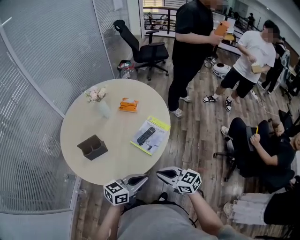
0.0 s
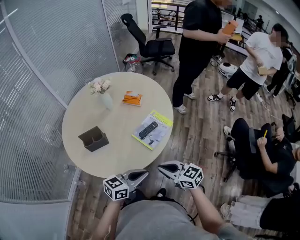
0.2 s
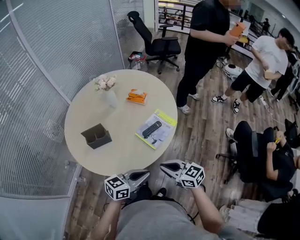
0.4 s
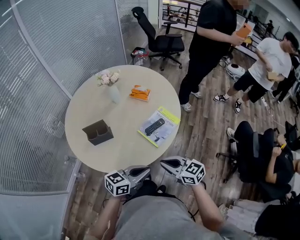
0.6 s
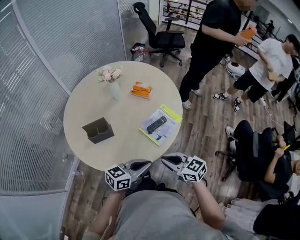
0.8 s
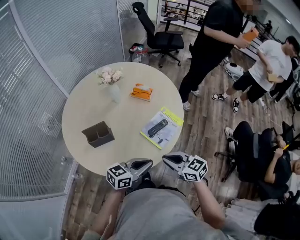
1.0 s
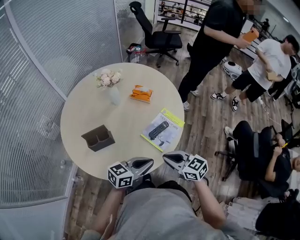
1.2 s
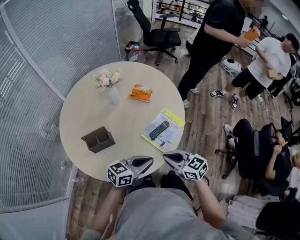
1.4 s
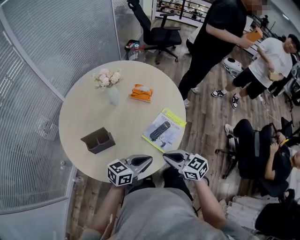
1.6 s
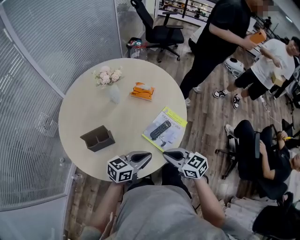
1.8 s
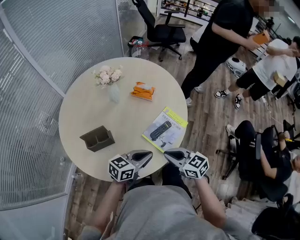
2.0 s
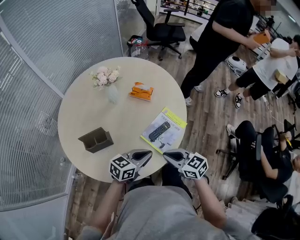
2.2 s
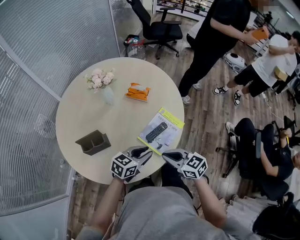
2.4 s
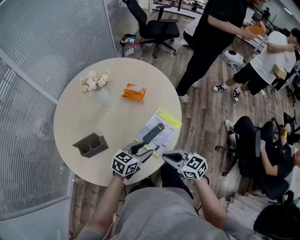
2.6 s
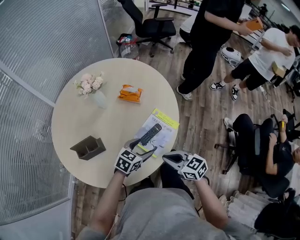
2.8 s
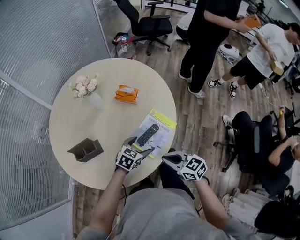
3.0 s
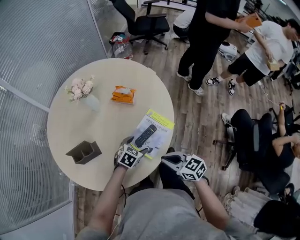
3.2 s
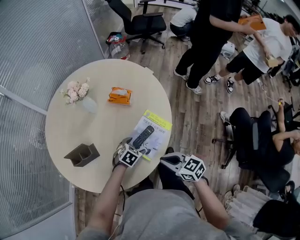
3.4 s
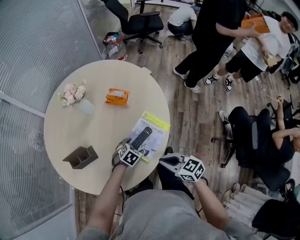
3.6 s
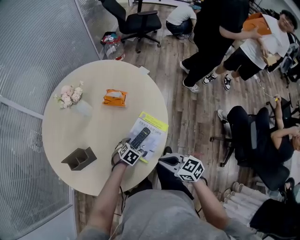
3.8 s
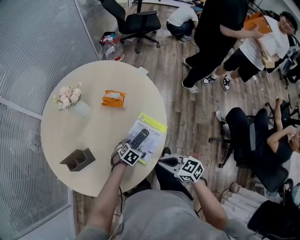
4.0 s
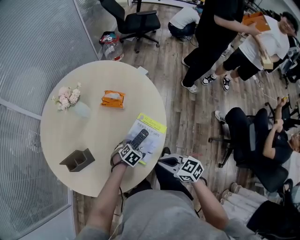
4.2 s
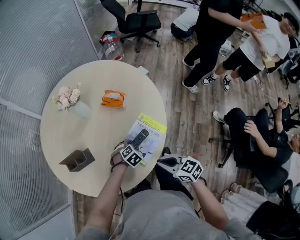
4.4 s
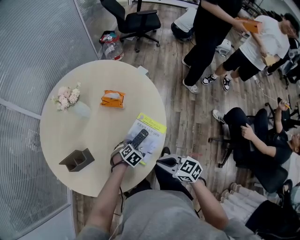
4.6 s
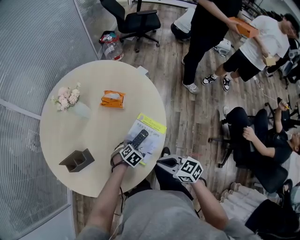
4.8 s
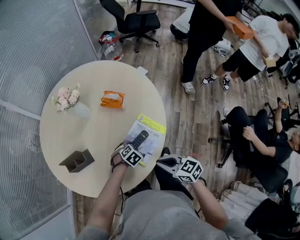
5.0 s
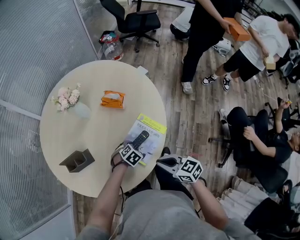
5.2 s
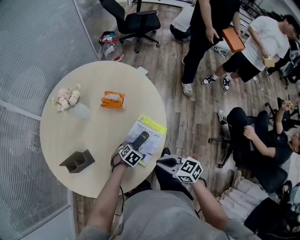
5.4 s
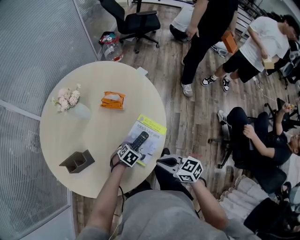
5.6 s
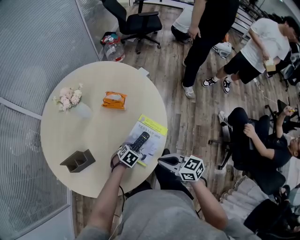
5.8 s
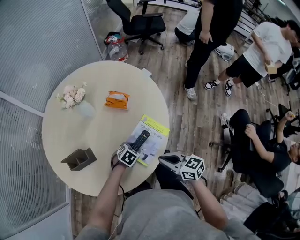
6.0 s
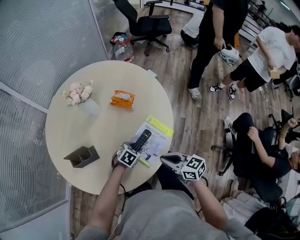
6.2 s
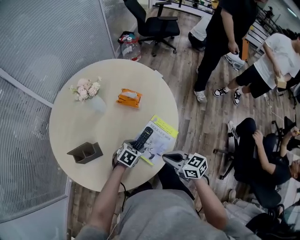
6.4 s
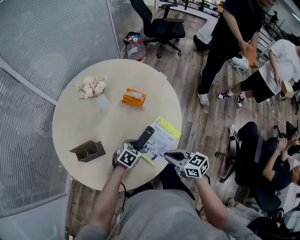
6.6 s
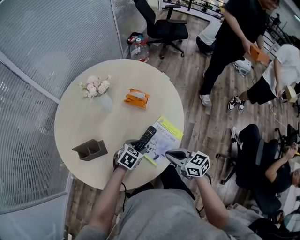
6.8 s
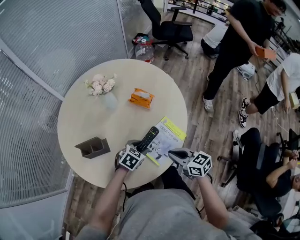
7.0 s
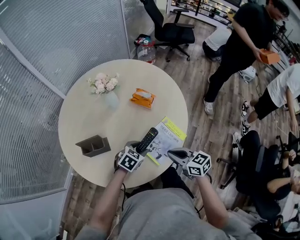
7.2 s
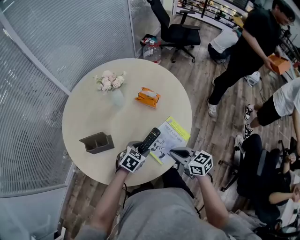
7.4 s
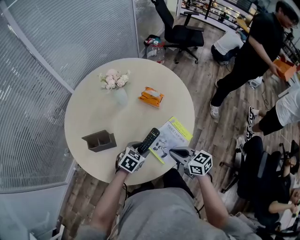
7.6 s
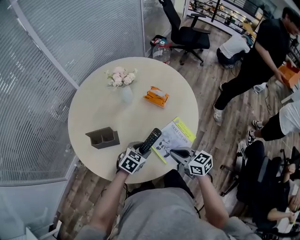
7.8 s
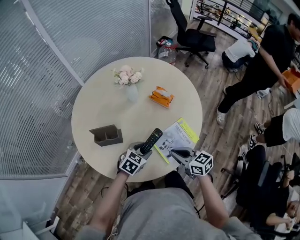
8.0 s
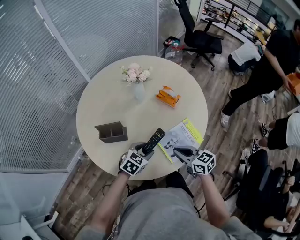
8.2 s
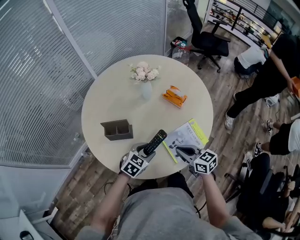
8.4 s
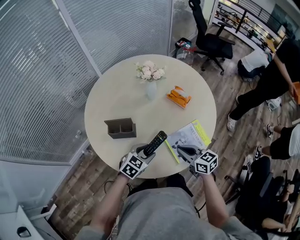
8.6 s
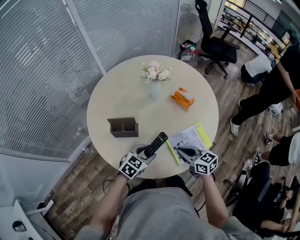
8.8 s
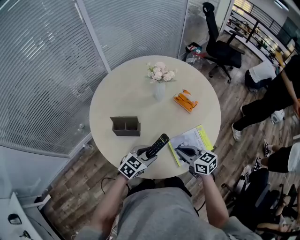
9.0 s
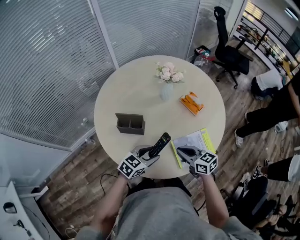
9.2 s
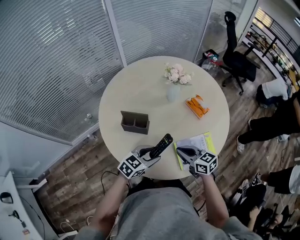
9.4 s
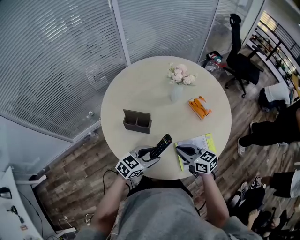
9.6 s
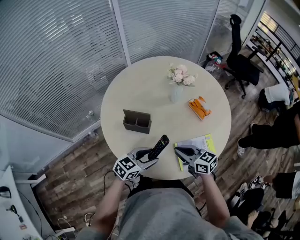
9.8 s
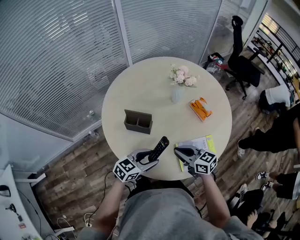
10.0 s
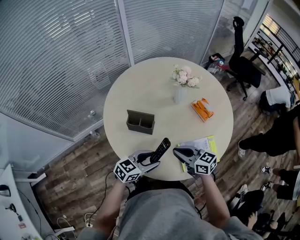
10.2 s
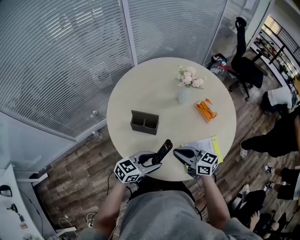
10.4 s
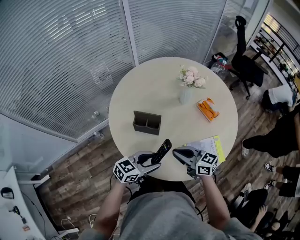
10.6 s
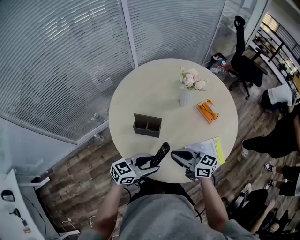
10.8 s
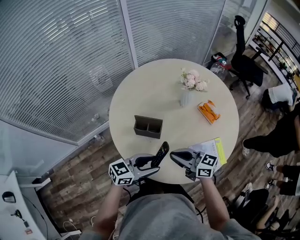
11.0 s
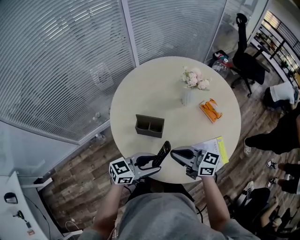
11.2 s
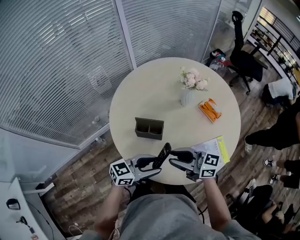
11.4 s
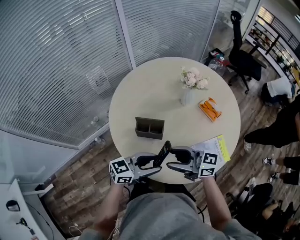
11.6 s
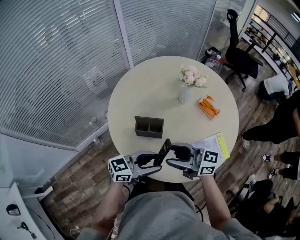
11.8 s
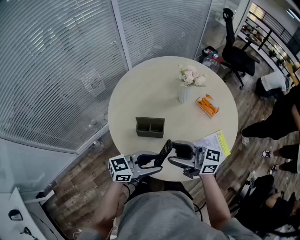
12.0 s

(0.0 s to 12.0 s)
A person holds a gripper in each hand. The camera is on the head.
0.0 s - 1.6 s: The left gripper goes approximately 15 cm forward and to the left; the right gripper goes about 10 cm forward.
1.6 s - 3.0 s: The left gripper shifts about 20 cm forward, downward and to the right, angles its fingers downward, by approximately 30 degrees, and opens, while the right gripper is displaced to the right by approximately 5 cm.
3.0 s - 4.4 s: The left gripper is displaced downward by approximately 10 cm, and rotates roughly 30 degrees.
4.4 s - 6.0 s: There are only small adjustments of the grippers.
6.0 s - 7.6 s: The left gripper goes approximately 15 cm upward and to the left, and turns by some 20 degrees, while the right gripper heads to the left, covering some 5 cm.
7.6 s - 9.0 s: Both grippers travel together to the left, about 10 cm.
9.0 s - 10.4 s: The right gripper ends up some 10 cm from where it was, and changes its angle by some 20 degrees. Meanwhile the left gripper changes place by roughly 10 cm, and turns by some 20 degrees.
10.4 s - 12.0 s: The two grippers go about 10 cm upward. The right gripper turns by about 20 degrees, and opens up. Meanwhile the left gripper swivels some 20 degrees.

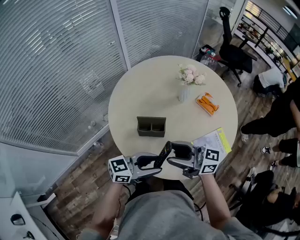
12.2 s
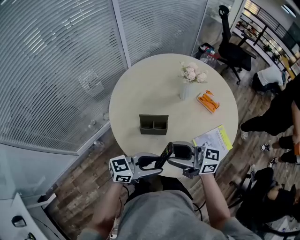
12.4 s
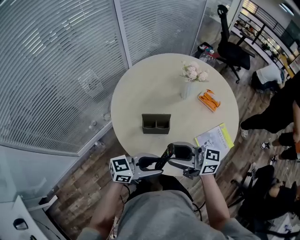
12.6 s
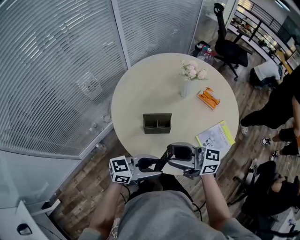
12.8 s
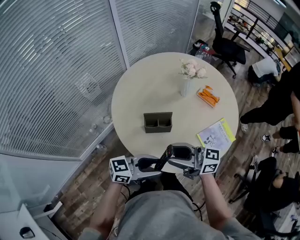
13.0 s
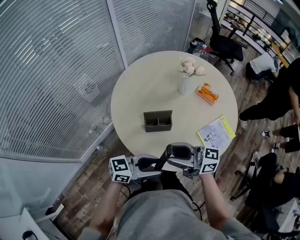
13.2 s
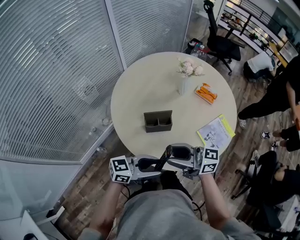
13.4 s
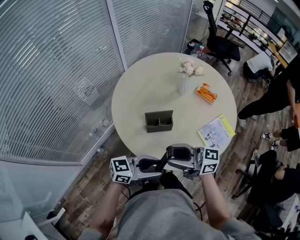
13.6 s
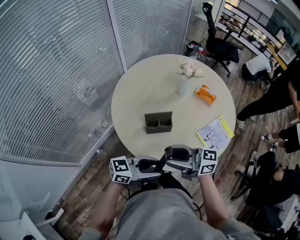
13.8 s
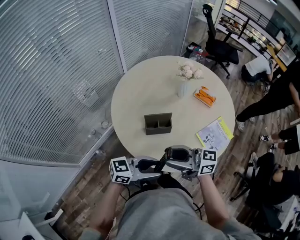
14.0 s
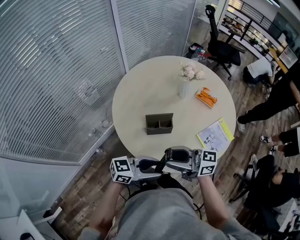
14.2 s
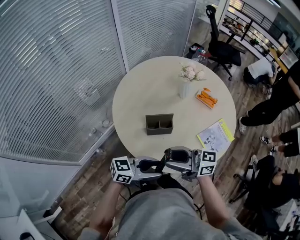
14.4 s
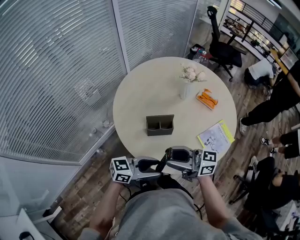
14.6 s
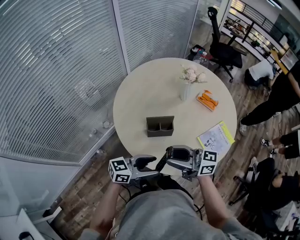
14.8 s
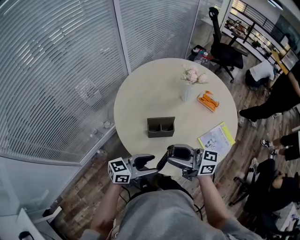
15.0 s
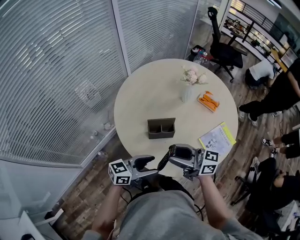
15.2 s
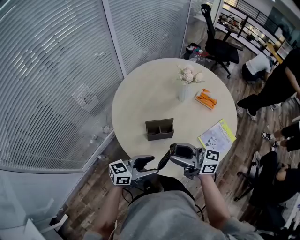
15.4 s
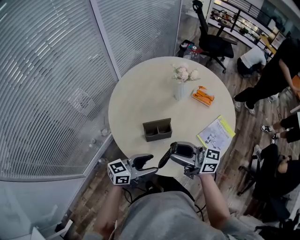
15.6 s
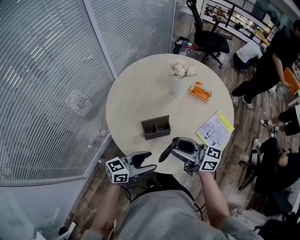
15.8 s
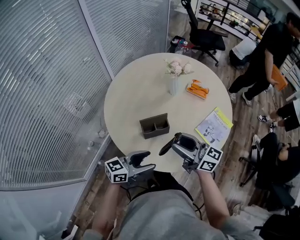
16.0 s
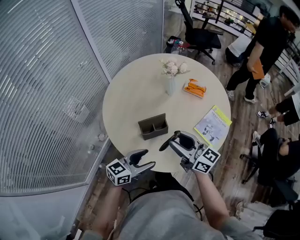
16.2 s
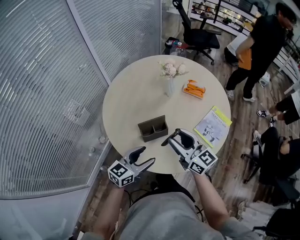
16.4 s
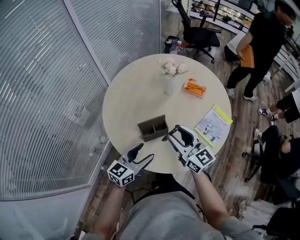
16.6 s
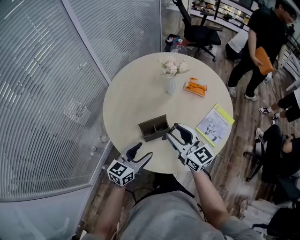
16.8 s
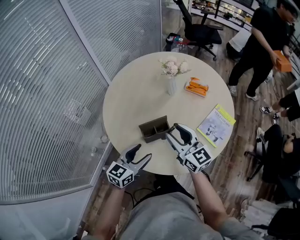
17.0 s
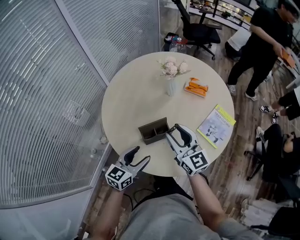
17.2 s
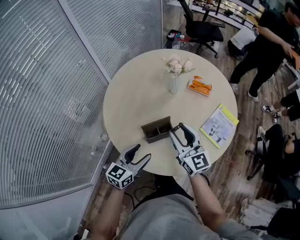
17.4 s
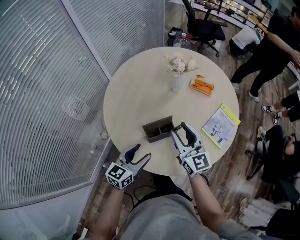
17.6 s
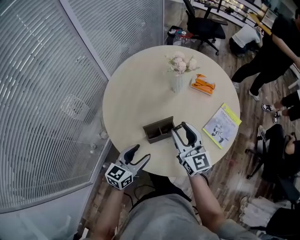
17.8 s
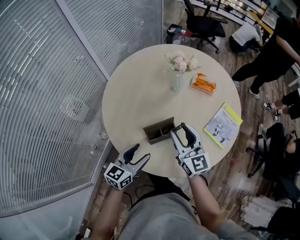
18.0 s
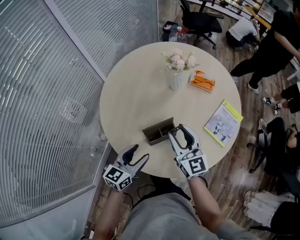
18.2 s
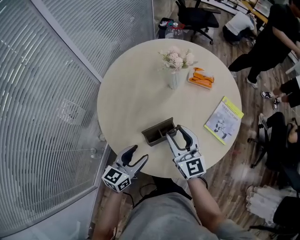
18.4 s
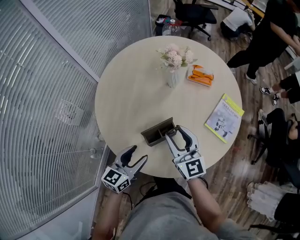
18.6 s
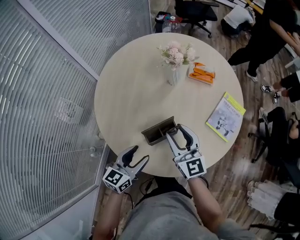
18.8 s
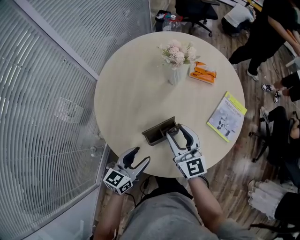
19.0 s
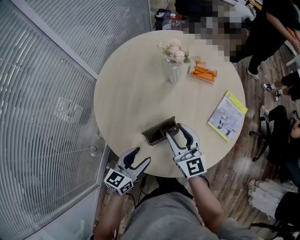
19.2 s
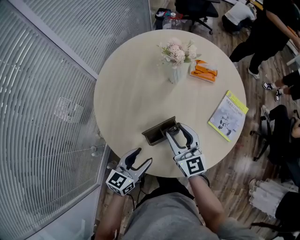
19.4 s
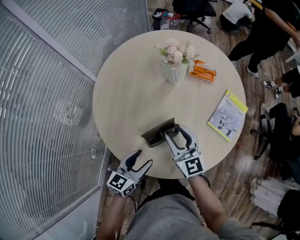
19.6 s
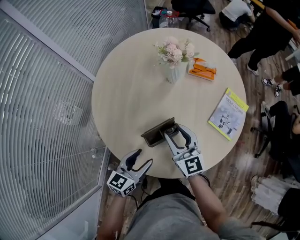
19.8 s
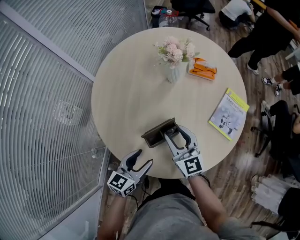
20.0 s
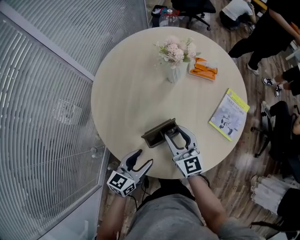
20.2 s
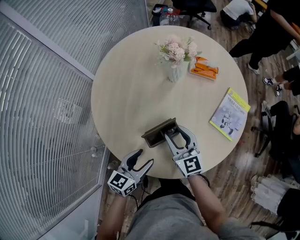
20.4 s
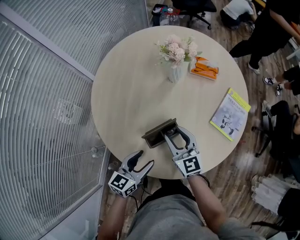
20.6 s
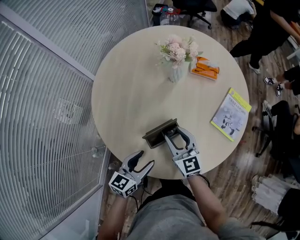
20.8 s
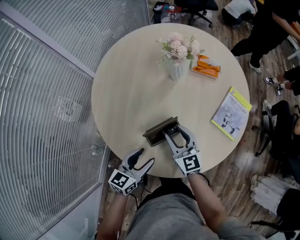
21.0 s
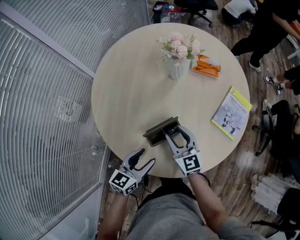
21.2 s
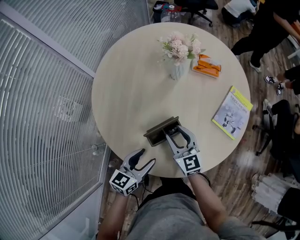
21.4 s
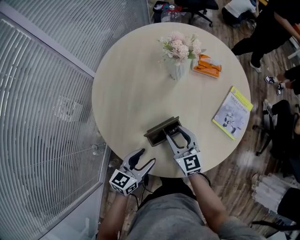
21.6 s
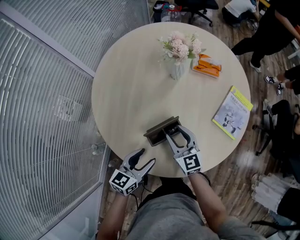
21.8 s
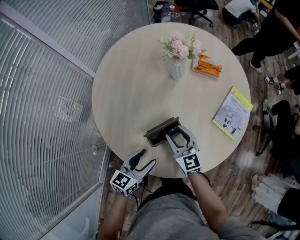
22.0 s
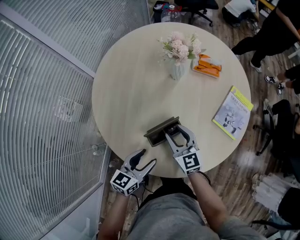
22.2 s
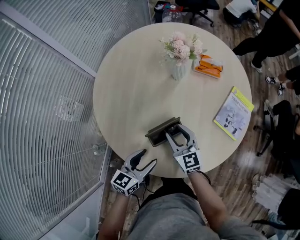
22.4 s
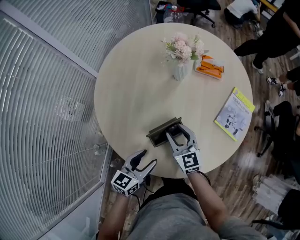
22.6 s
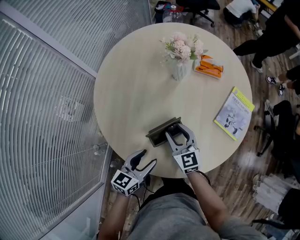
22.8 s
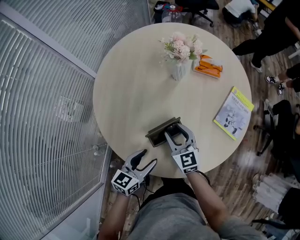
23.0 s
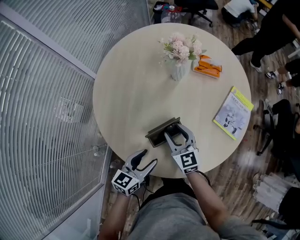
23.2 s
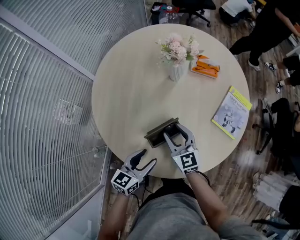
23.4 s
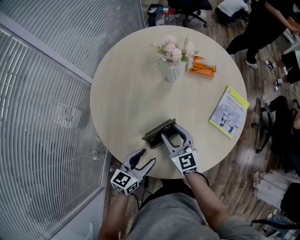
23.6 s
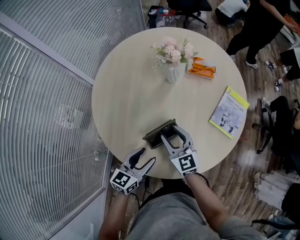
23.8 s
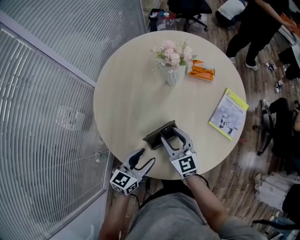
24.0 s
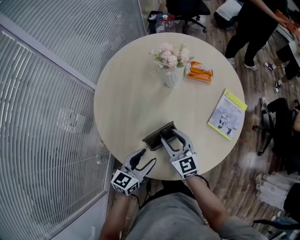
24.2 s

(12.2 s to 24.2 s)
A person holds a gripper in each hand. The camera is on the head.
12.2 s - 13.8 s: The right gripper changes place by roughly 10 cm. Meanwhile the left gripper changes place by roughly 10 cm.
13.8 s - 15.2 s: The left gripper moves about 5 cm.
15.2 s - 16.6 s: The left gripper moves roughly 10 cm, and rotates roughly 20 degrees. Meanwhile the right gripper shifts by roughly 10 cm, and changes its angle by roughly 50 degrees.
16.6 s - 18.2 s: The right gripper moves downward and forward, approximately 10 cm; the left gripper moves to the left, some 5 cm.
18.2 s - 19.8 s: The right gripper shifts approximately 5 cm downward.
19.8 s - 21.2 s: The right gripper heads downward, covering approximately 5 cm.
21.2 s - 24.2 s: The grippers move only a little.
